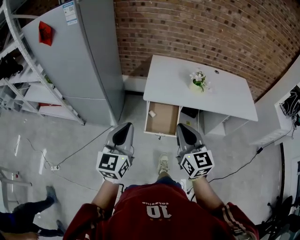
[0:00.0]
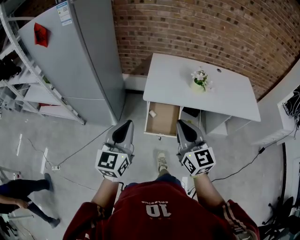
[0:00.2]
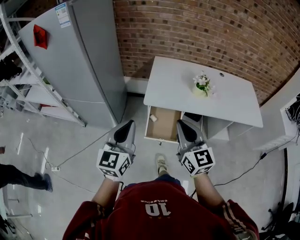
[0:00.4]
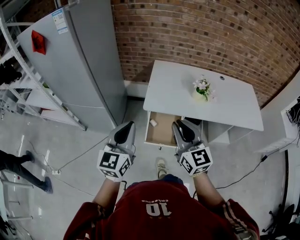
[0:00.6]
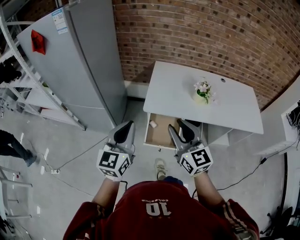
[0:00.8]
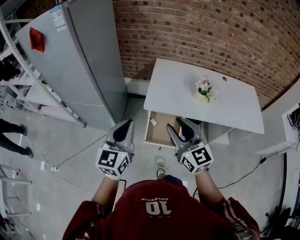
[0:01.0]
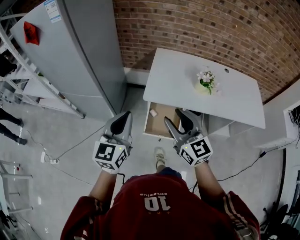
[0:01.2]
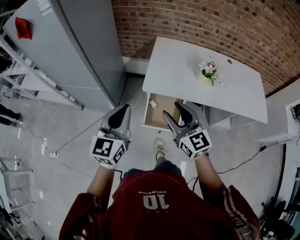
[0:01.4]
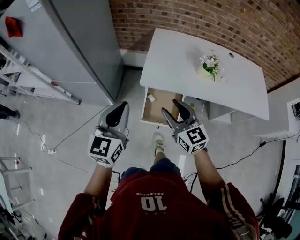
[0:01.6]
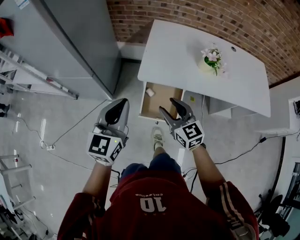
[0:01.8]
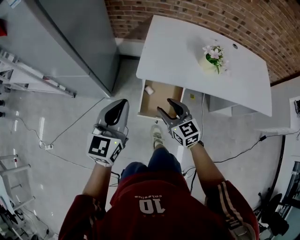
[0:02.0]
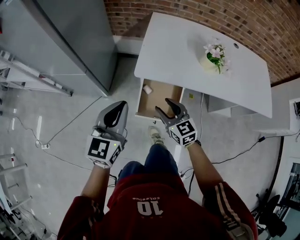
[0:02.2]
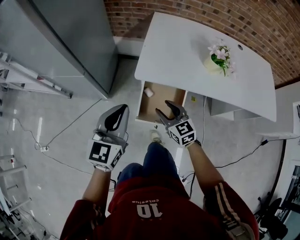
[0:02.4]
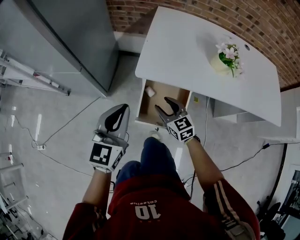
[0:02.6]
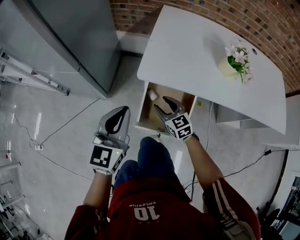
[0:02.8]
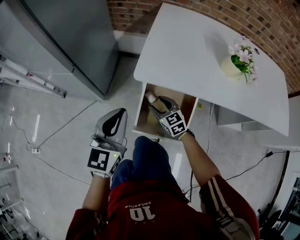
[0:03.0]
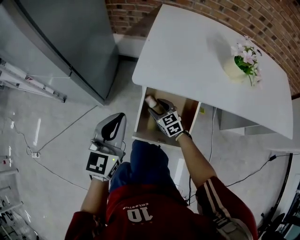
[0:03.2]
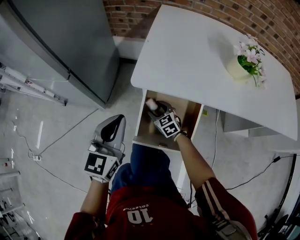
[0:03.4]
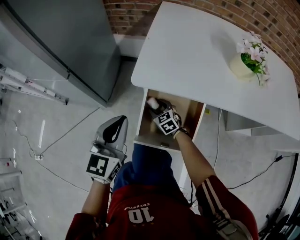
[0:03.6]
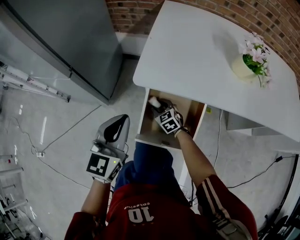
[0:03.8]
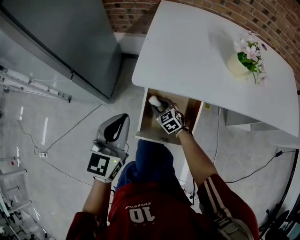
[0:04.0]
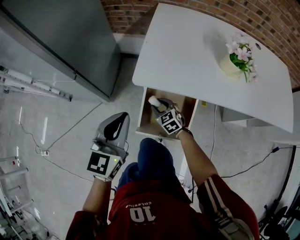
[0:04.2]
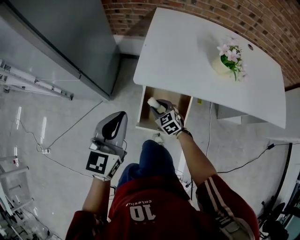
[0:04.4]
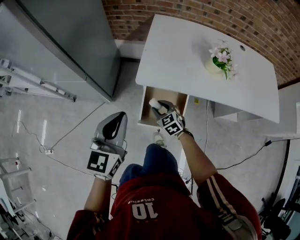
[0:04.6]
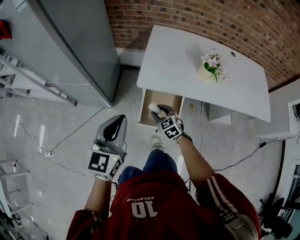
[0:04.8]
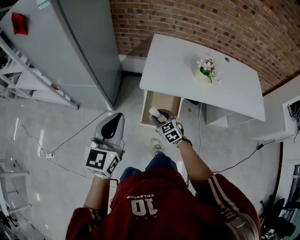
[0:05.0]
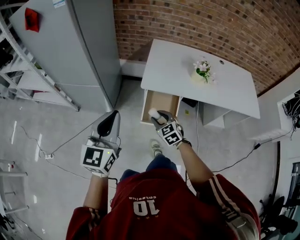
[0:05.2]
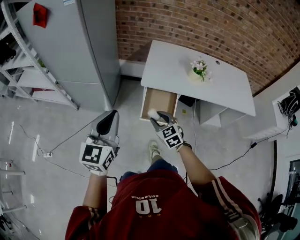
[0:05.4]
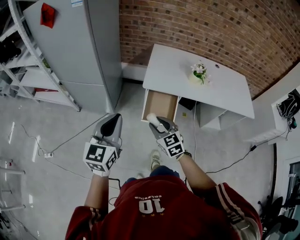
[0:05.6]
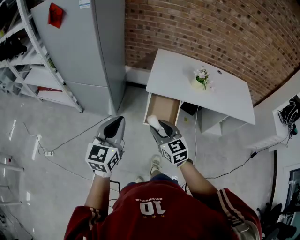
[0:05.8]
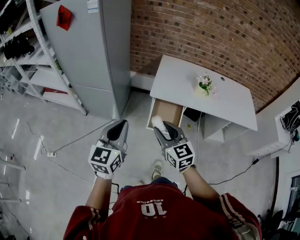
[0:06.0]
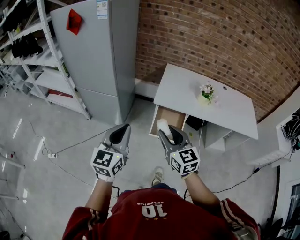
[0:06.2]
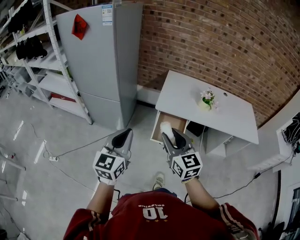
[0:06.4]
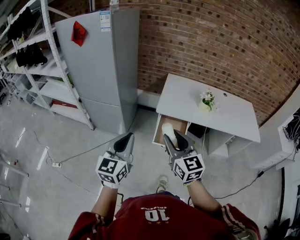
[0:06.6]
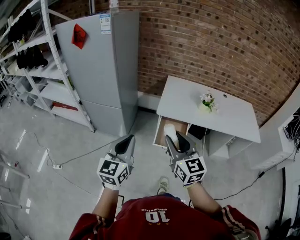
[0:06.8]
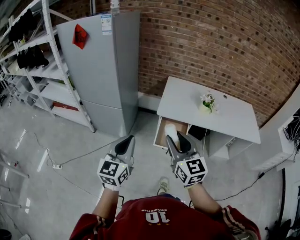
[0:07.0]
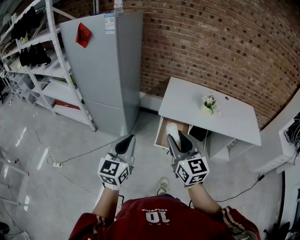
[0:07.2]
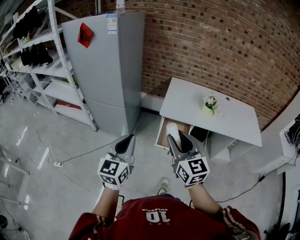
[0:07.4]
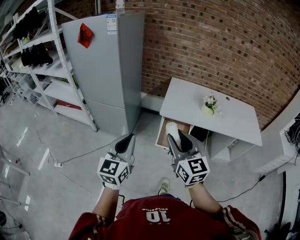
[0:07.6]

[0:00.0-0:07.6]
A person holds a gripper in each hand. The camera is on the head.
0:00.0 to 0:01.6: The left gripper moves forward, roughly 15 cm; the right gripper goes roughly 20 cm forward and downward, and opens up.
0:01.6 to 0:03.0: The right gripper is displaced downward by about 40 cm; the left gripper is displaced downward by roughly 25 cm.
0:03.0 to 0:04.6: The left gripper goes roughly 15 cm upward, while the right gripper heads upward and backward, covering about 10 cm.
0:04.6 to 0:06.0: The right gripper shifts roughly 50 cm upward and backward, and turns by about 30 degrees. The left gripper goes approximately 30 cm backward, upward and to the left.
0:06.0 to 0:07.6: The right gripper goes about 10 cm upward. Meanwhile the left gripper shifts by roughly 5 cm.

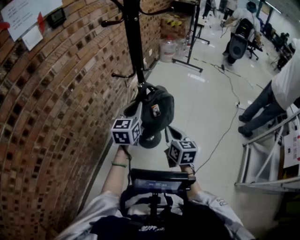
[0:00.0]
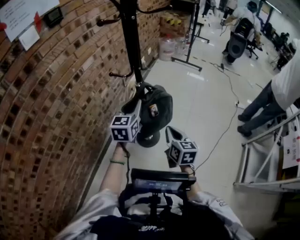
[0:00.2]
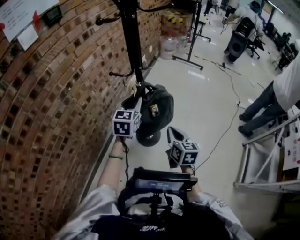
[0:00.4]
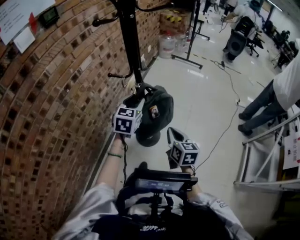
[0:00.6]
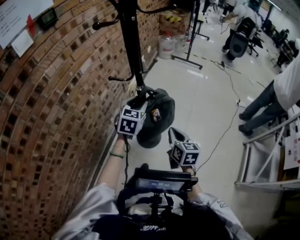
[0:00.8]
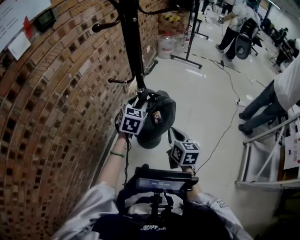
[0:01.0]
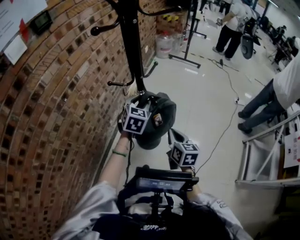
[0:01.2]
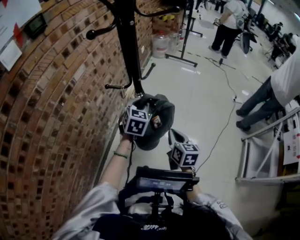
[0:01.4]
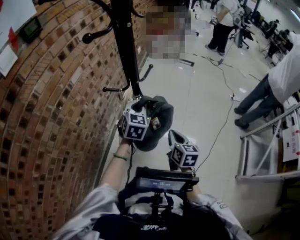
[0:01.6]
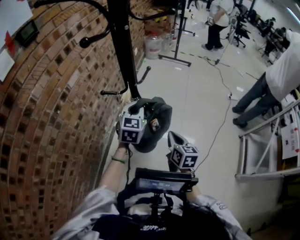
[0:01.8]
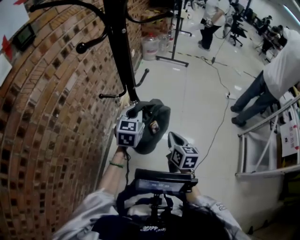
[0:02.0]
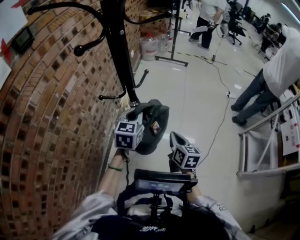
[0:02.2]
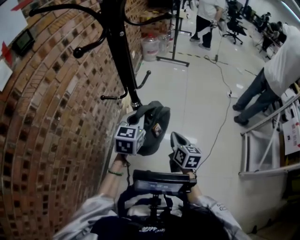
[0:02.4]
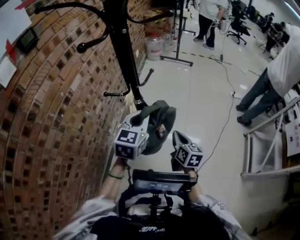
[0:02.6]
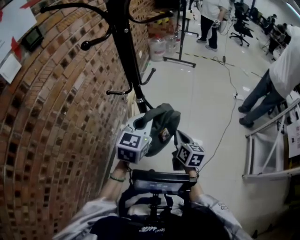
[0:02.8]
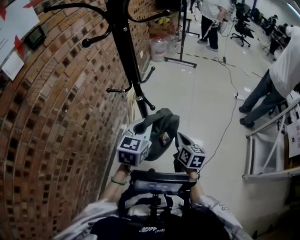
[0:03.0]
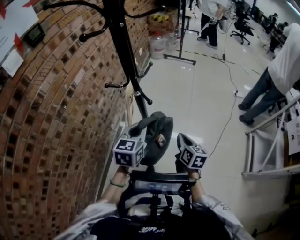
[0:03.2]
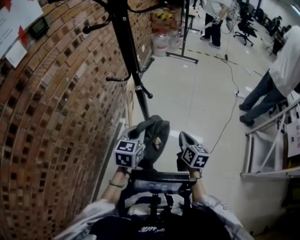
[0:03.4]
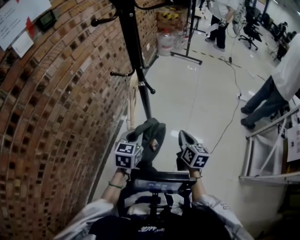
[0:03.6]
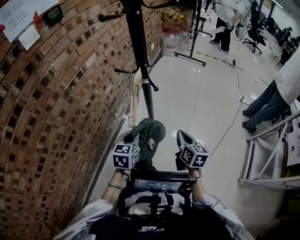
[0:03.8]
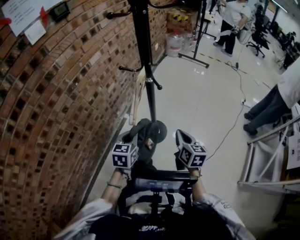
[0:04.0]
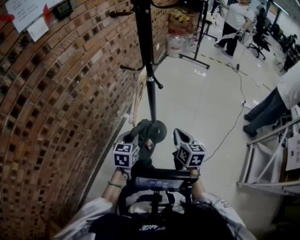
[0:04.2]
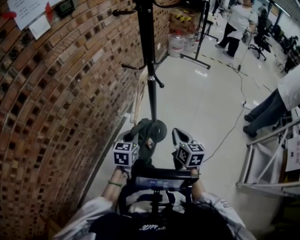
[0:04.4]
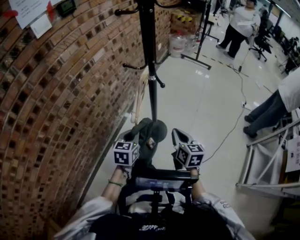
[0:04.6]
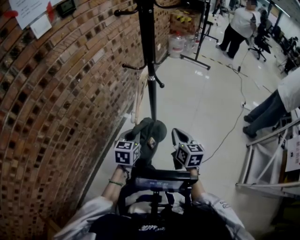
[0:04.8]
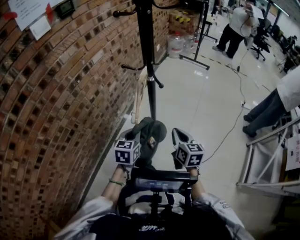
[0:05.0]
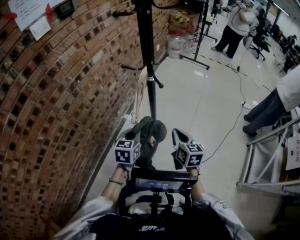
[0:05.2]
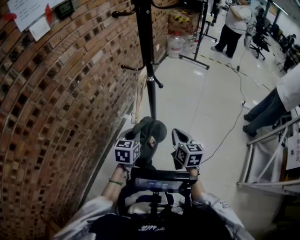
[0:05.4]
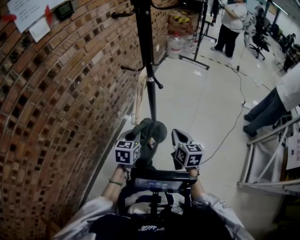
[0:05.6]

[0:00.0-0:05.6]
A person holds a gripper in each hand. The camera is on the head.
0:00.0 to 0:01.4: The left gripper goes about 10 cm forward, rotates approximately 30 degrees, and opens, then closes again. The right gripper moves forward, some 5 cm.
0:01.4 to 0:02.8: The left gripper goes about 10 cm backward and upward.
0:02.8 to 0:04.2: The right gripper shifts some 10 cm backward. Meanwhile the left gripper is displaced backward, downward and to the left by approximately 20 cm, and rotates roughly 30 degrees.
0:04.2 to 0:05.6: The grippers move only a little.

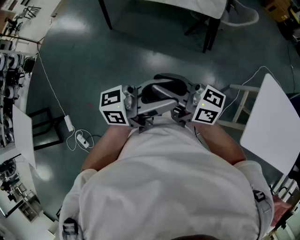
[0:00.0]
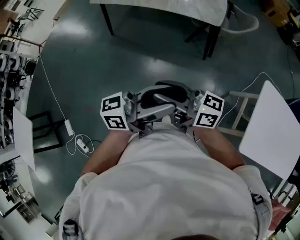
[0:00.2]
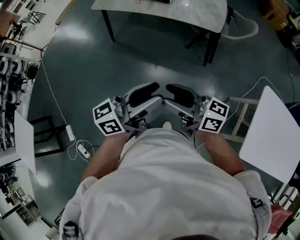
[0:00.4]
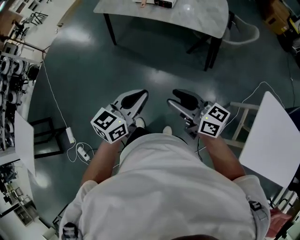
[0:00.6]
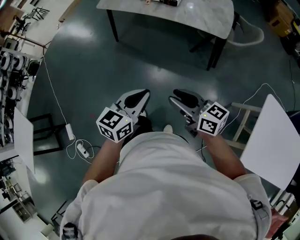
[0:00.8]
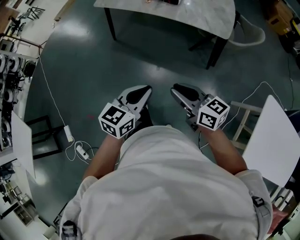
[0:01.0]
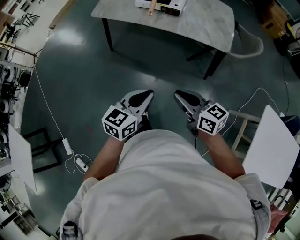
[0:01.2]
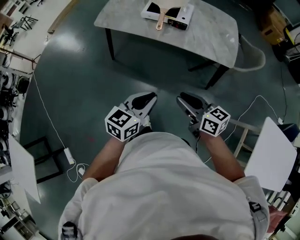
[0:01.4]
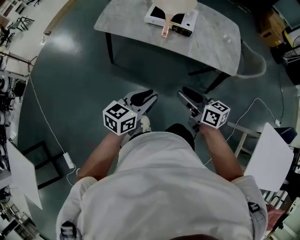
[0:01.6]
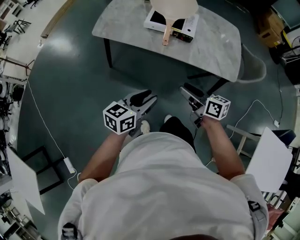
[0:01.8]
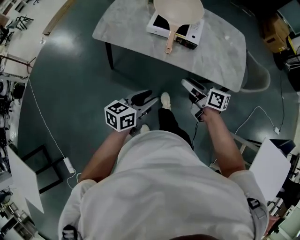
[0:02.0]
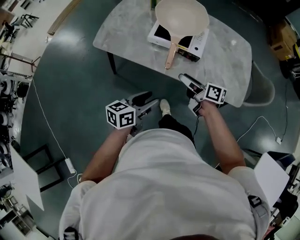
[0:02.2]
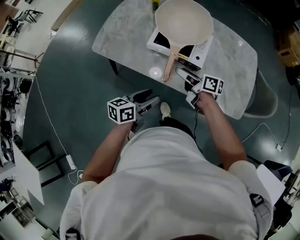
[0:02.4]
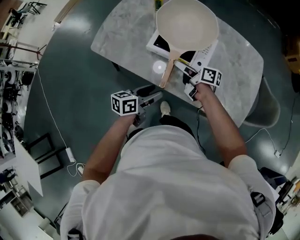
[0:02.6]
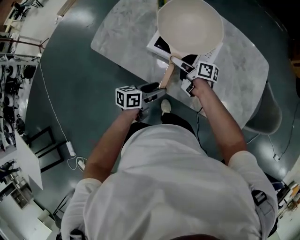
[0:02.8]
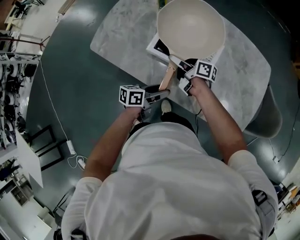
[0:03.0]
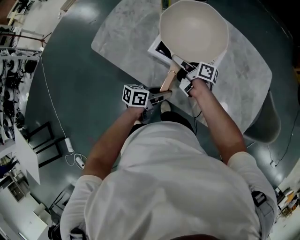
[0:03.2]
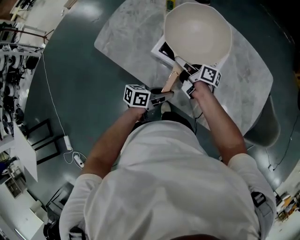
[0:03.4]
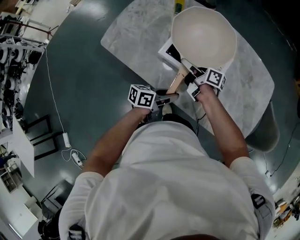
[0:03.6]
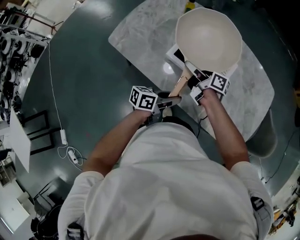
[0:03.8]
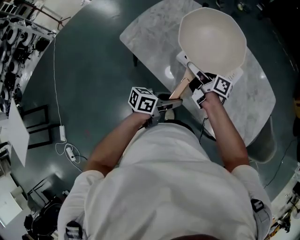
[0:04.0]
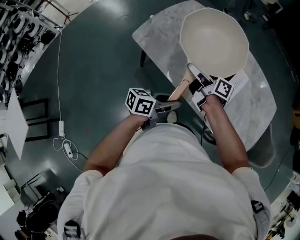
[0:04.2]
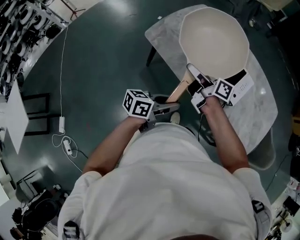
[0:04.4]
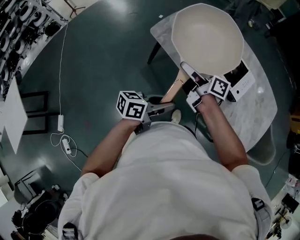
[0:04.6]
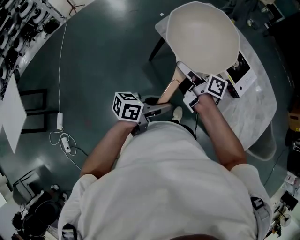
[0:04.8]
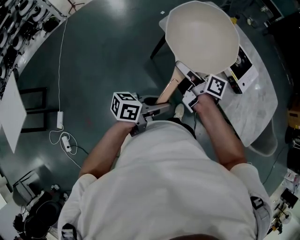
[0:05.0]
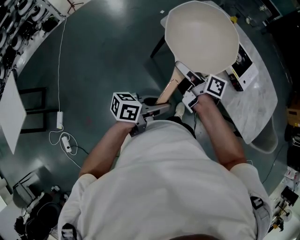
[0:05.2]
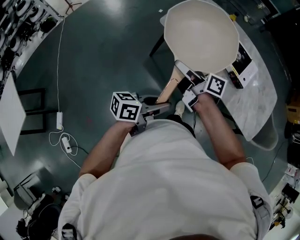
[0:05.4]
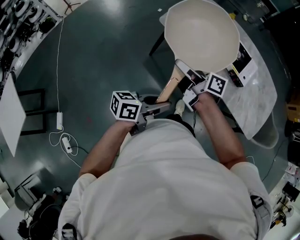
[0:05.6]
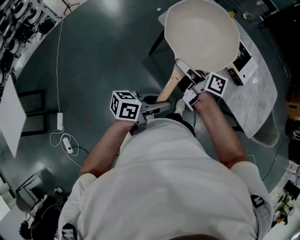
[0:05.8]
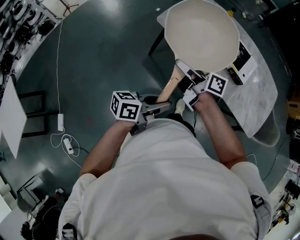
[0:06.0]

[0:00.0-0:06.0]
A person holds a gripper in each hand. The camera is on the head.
0:00.0 to 0:01.6: The right gripper changes place by about 40 cm, and turns by about 30 degrees. The left gripper changes place by about 50 cm, tilts its fingers some 30 degrees downward, and closes.
0:01.6 to 0:03.0: The pair of grippers is taken forward, about 50 cm. The right gripper rotates roughly 40 degrees, while the left gripper shifts some 15 cm downward, changes its angle by some 40 degrees, and opens its fingers.
0:03.0 to 0:04.4: The two grippers go about 20 cm to the left, upward and backward. The left gripper closes up.
0:04.4 to 0:06.0: The grippers both shift backward and to the left by roughly 20 cm.

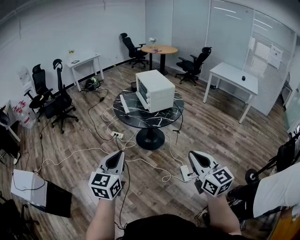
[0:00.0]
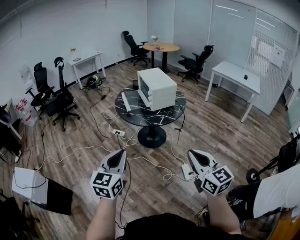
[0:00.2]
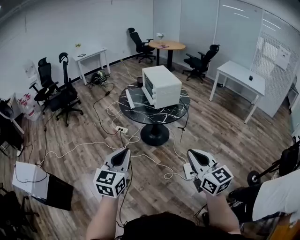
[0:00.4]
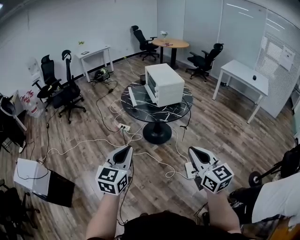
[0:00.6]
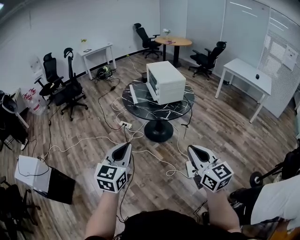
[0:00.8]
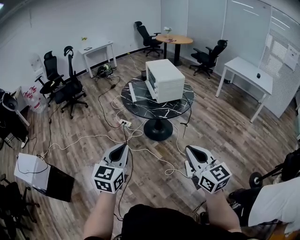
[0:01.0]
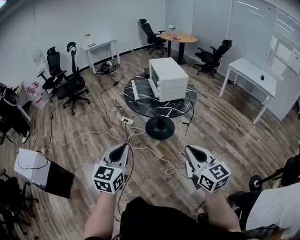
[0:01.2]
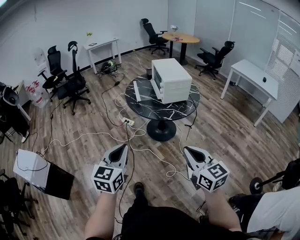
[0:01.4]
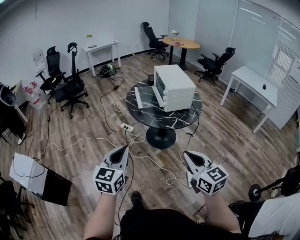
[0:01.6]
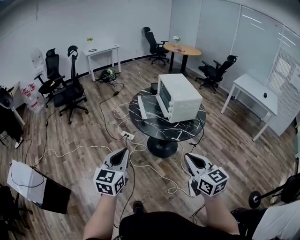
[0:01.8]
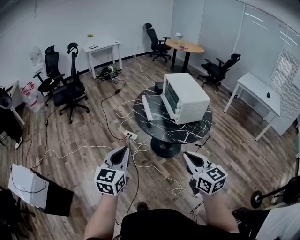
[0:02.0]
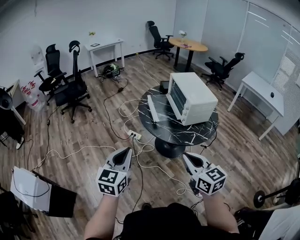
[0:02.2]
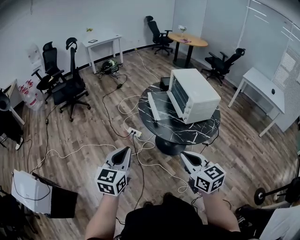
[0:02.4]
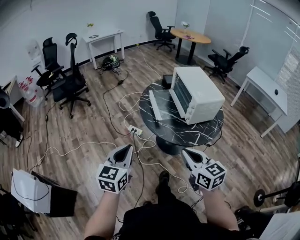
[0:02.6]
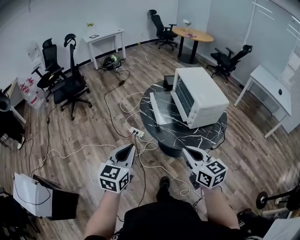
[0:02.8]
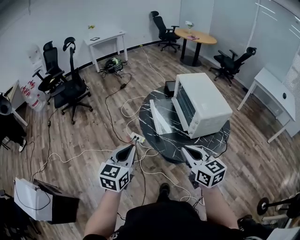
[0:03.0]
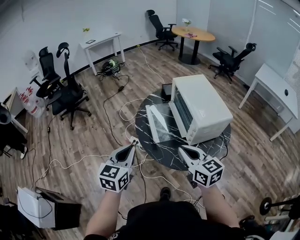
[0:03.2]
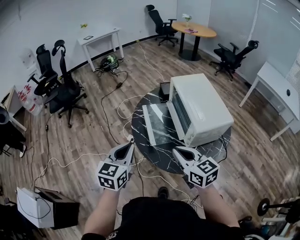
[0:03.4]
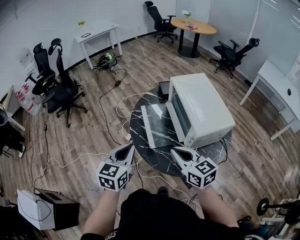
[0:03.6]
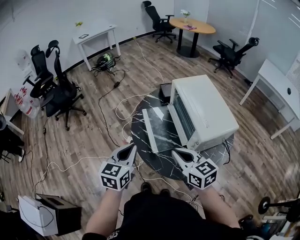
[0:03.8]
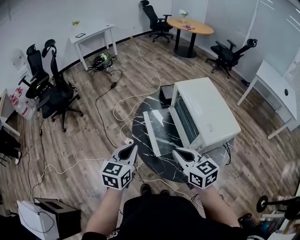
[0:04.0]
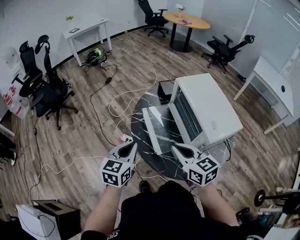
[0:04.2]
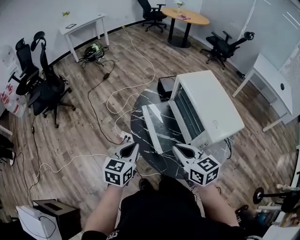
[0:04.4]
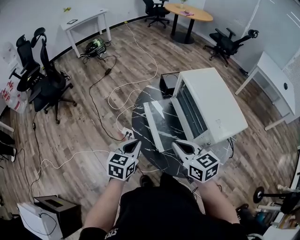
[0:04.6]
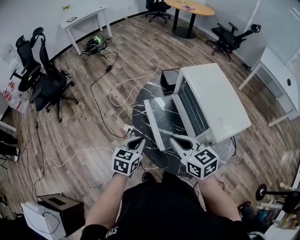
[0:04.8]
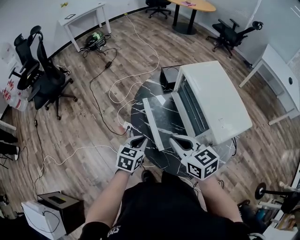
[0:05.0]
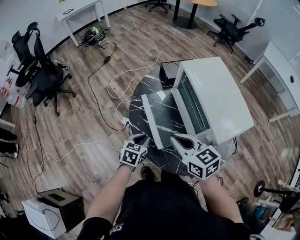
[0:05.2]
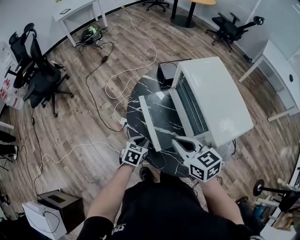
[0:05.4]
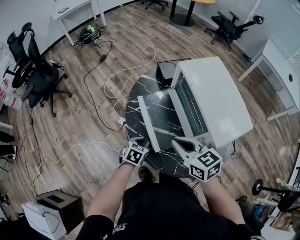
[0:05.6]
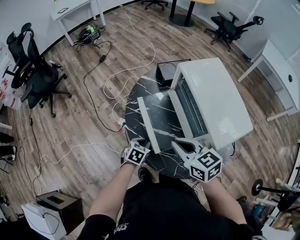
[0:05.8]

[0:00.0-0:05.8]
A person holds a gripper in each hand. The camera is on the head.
0:00.0 to 0:01.4: The right gripper shifts about 10 cm forward. Meanwhile the left gripper ends up roughly 5 cm from where it was.
0:01.4 to 0:02.8: The left gripper moves forward, some 35 cm. The right gripper shifts about 40 cm forward and to the left.
0:02.8 to 0:04.4: The two grippers go some 30 cm forward.
0:04.4 to 0:05.8: The left gripper travels downward by about 25 cm, and changes its angle by about 30 degrees. The right gripper moves forward, some 5 cm.
